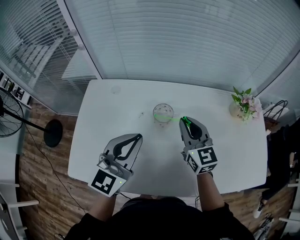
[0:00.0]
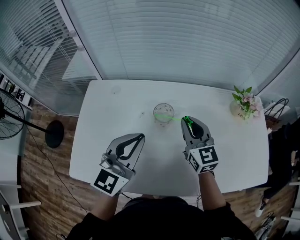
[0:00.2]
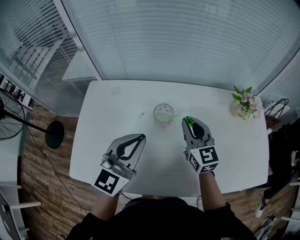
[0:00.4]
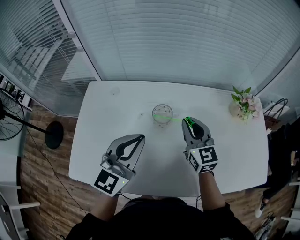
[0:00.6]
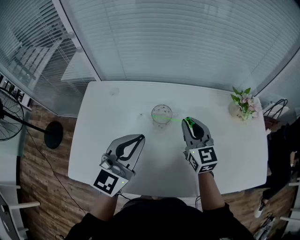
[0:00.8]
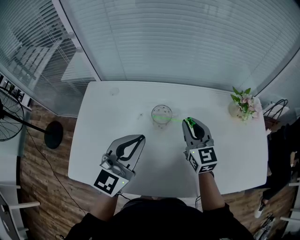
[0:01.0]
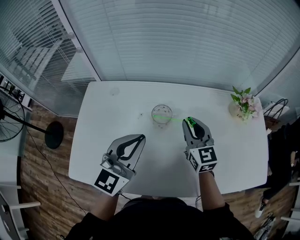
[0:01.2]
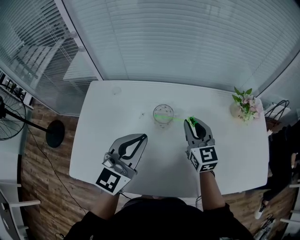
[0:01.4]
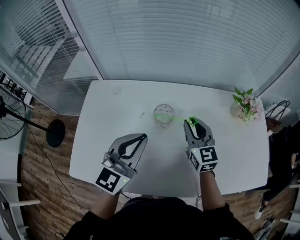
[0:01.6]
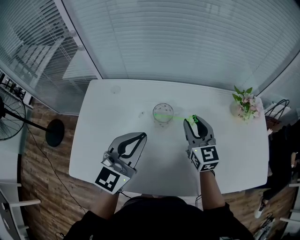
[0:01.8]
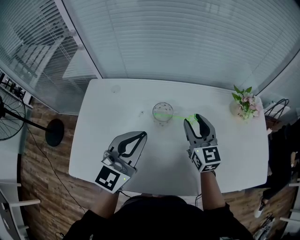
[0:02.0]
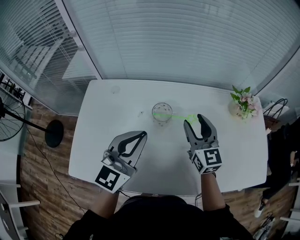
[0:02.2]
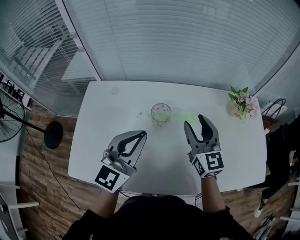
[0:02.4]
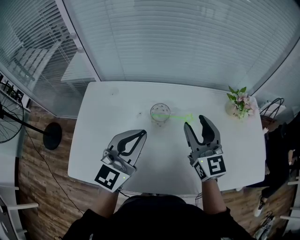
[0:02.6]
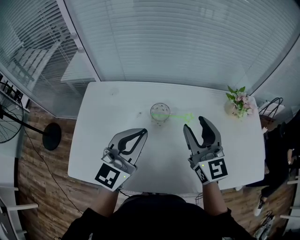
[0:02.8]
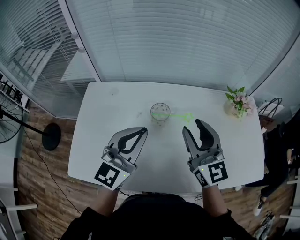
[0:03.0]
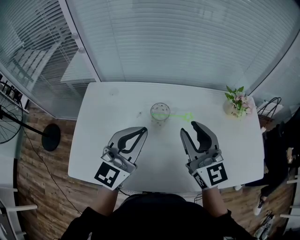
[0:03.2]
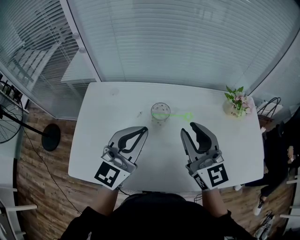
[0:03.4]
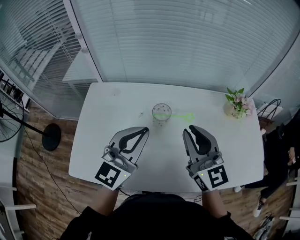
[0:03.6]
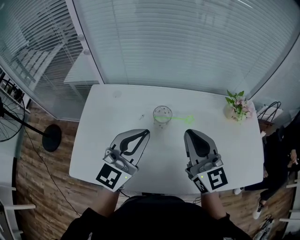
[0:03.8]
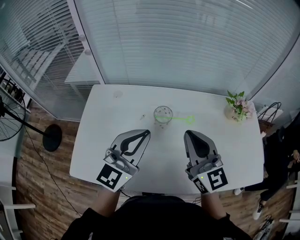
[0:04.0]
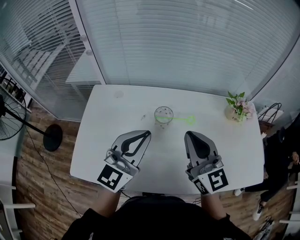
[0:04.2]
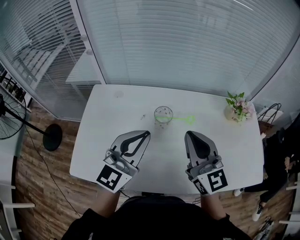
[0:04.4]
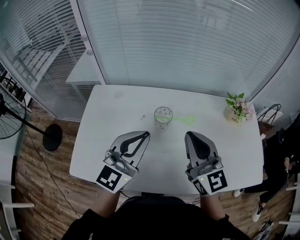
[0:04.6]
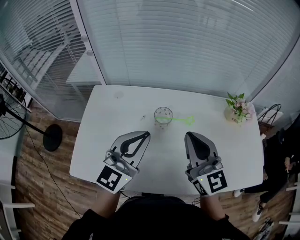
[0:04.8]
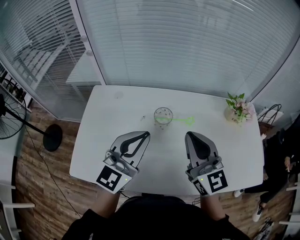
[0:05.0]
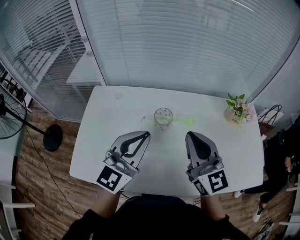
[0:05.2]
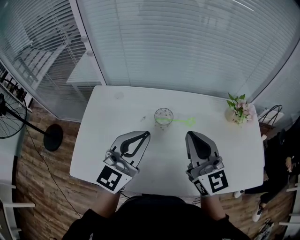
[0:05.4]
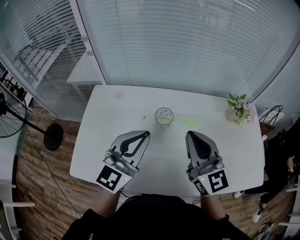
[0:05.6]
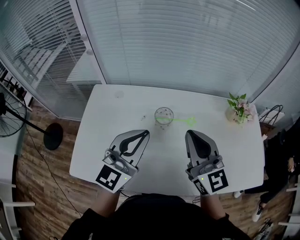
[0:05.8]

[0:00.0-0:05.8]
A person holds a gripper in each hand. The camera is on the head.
0:00.0 to 0:01.4: The grippers make only small movements.
0:01.4 to 0:02.8: The right gripper travels upward and backward by approximately 15 cm, and opens.
0:02.8 to 0:04.4: The right gripper moves backward, about 5 cm, and closes.
0:04.4 to 0:05.8: Both grippers stay about where they are.

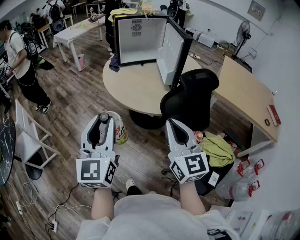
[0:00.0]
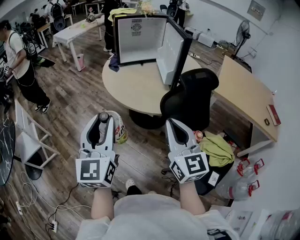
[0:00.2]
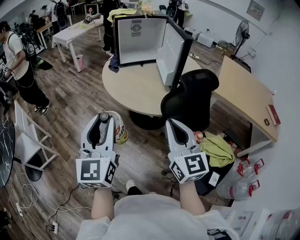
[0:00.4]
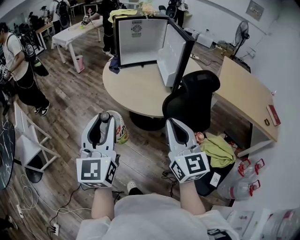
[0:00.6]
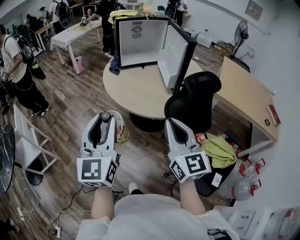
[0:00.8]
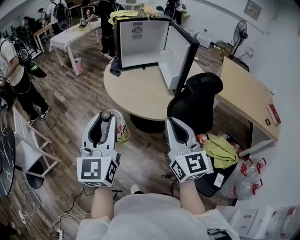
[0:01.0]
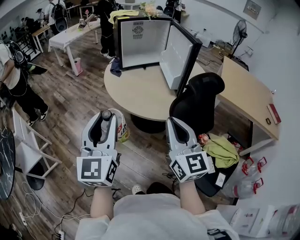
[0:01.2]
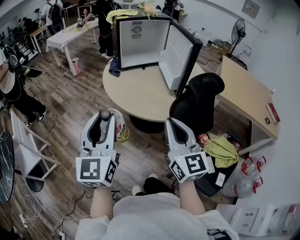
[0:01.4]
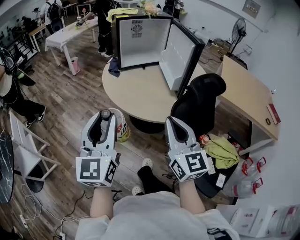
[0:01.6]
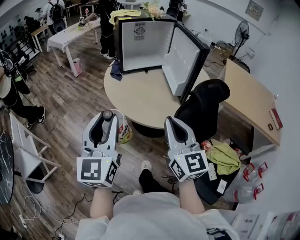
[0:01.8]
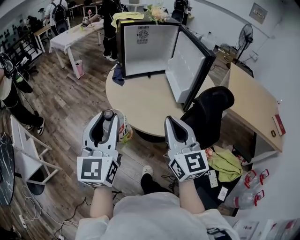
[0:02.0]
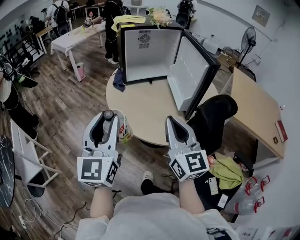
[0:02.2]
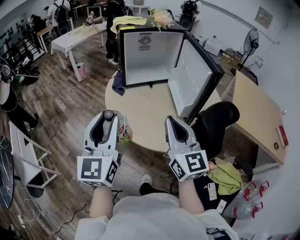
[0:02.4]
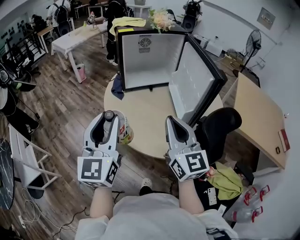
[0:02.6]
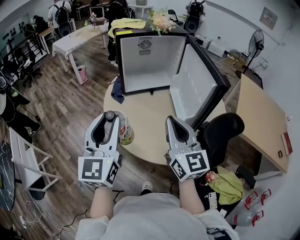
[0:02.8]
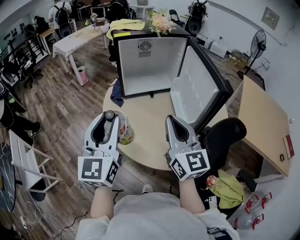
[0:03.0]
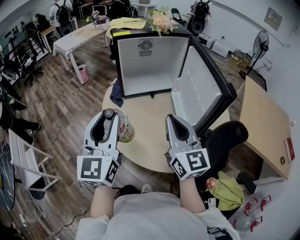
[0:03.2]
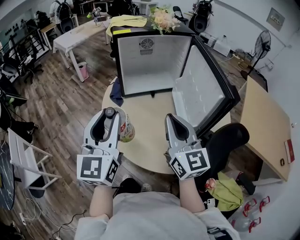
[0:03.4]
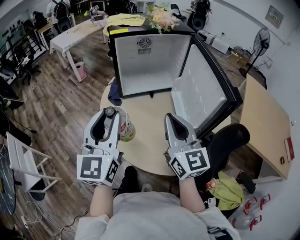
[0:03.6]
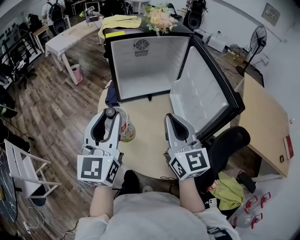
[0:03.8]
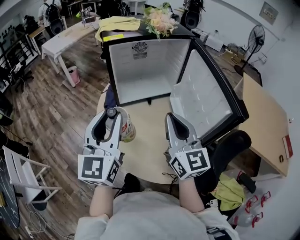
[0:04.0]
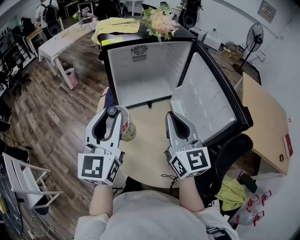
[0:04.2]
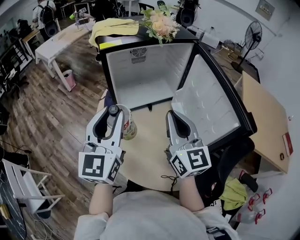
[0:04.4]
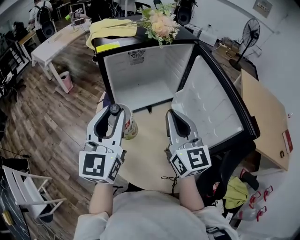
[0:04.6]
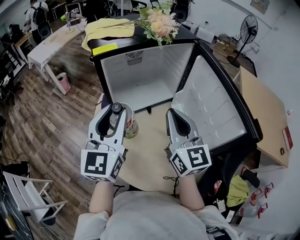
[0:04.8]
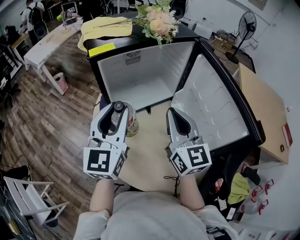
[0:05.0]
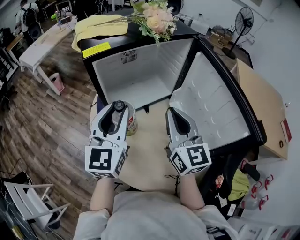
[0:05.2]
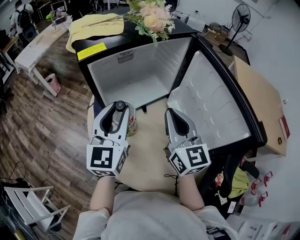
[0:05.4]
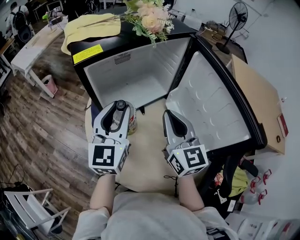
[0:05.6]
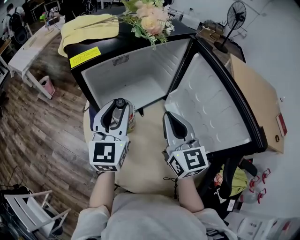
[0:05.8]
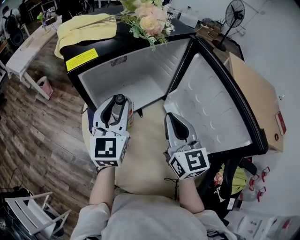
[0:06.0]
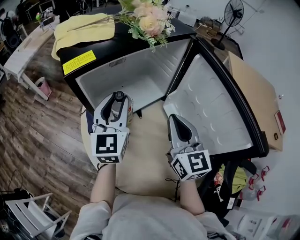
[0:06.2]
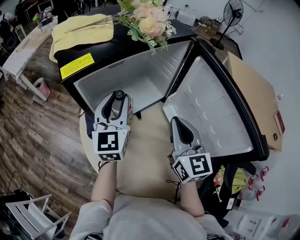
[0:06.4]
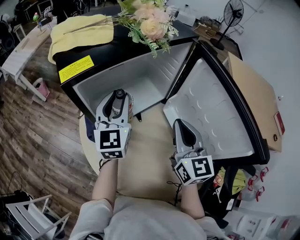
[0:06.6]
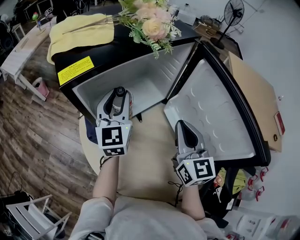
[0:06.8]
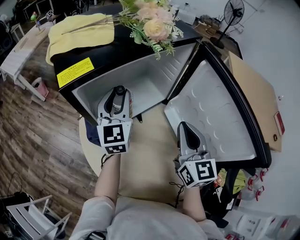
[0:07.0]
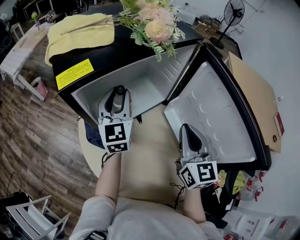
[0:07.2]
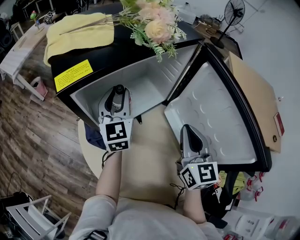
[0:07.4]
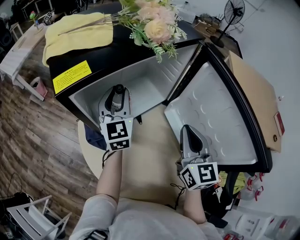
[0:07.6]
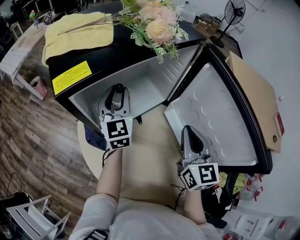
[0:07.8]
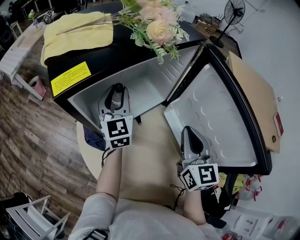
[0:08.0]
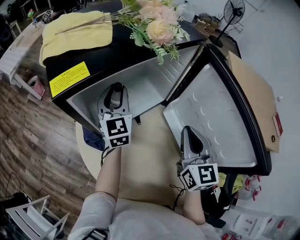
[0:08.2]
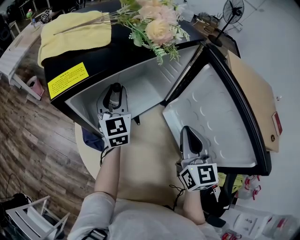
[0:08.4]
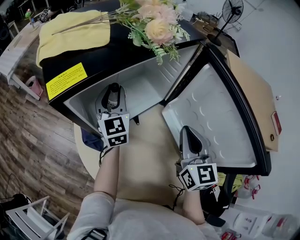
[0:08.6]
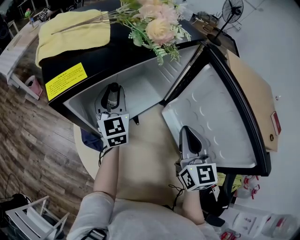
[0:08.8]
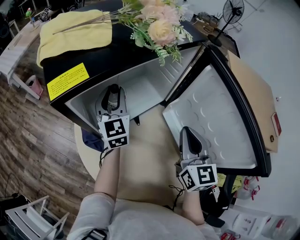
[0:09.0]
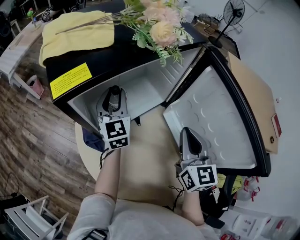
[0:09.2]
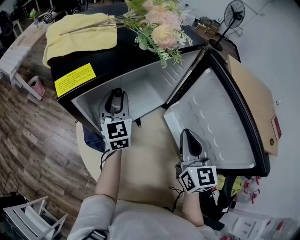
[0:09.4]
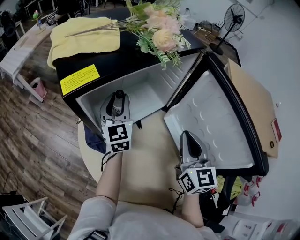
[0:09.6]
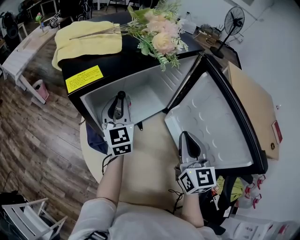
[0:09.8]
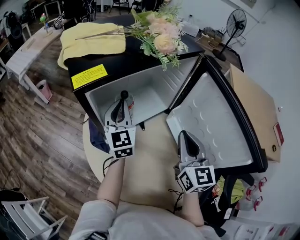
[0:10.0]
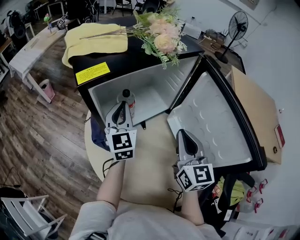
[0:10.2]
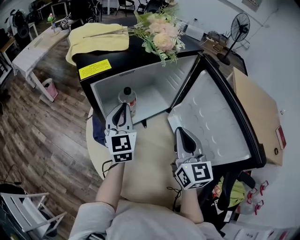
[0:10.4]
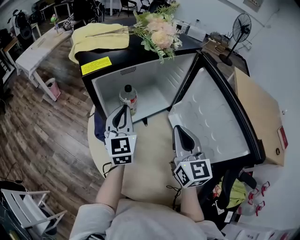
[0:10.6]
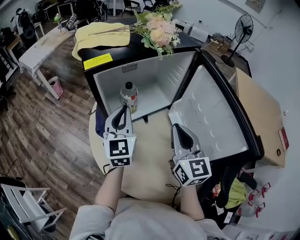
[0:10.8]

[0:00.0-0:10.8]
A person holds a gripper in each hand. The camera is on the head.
0:00.0 to 0:01.6: The two grippers go roughly 10 cm forward and to the left.
0:01.6 to 0:03.0: The grippers both shift forward by about 30 cm.
0:03.0 to 0:04.6: Both grippers travel together forward, roughly 20 cm.
0:04.6 to 0:06.2: The left gripper is displaced forward and downward by some 20 cm. The right gripper travels forward and downward by roughly 10 cm.
0:06.2 to 0:07.8: The left gripper travels forward and downward by approximately 10 cm. The right gripper changes place by some 5 cm.
0:07.8 to 0:09.2: There are only small adjustments of the grippers.
0:09.2 to 0:10.8: The right gripper moves approximately 5 cm. The left gripper travels backward by about 15 cm, and closes its fingers.

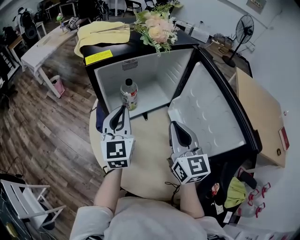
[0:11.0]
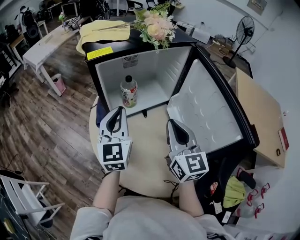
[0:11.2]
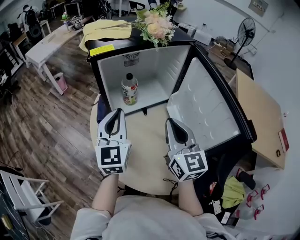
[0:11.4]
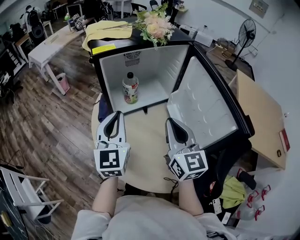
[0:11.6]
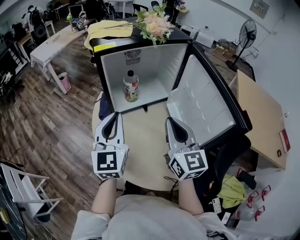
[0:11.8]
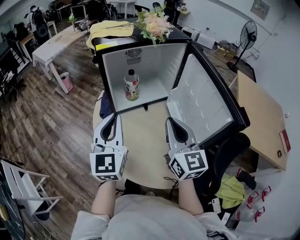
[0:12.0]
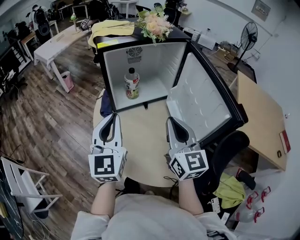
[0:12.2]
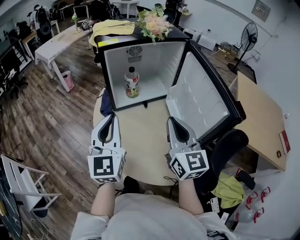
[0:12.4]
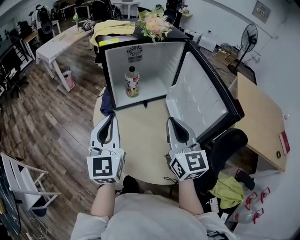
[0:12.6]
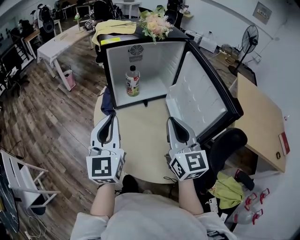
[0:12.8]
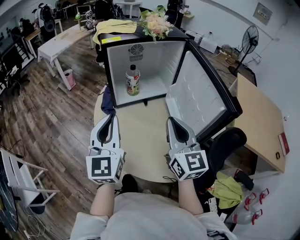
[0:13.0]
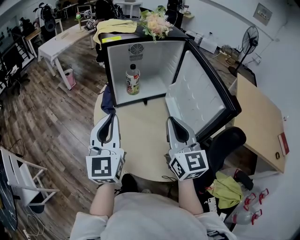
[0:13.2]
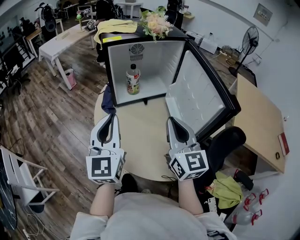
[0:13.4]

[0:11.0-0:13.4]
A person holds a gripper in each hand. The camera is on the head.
0:11.0 to 0:12.2: The left gripper goes roughly 15 cm backward. Meanwhile the right gripper is displaced backward by some 10 cm.
0:12.2 to 0:13.4: The left gripper travels backward by about 5 cm; the right gripper moves approximately 5 cm.

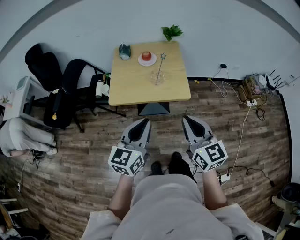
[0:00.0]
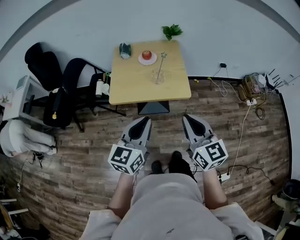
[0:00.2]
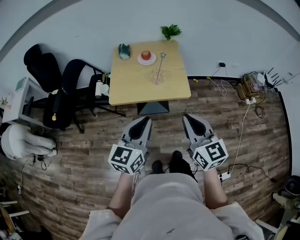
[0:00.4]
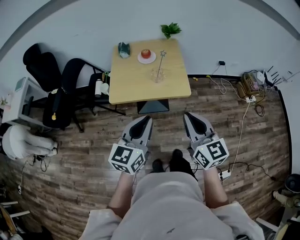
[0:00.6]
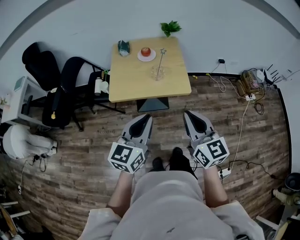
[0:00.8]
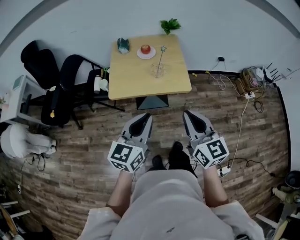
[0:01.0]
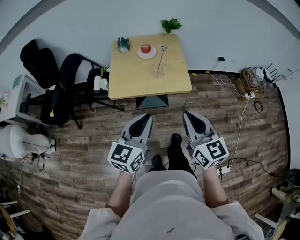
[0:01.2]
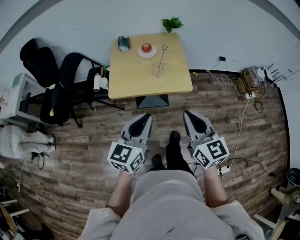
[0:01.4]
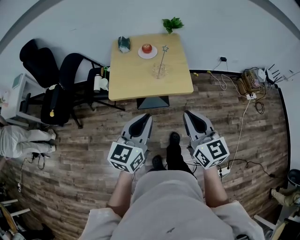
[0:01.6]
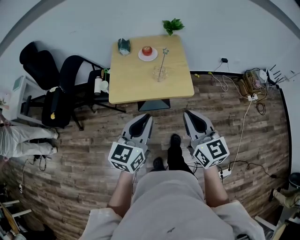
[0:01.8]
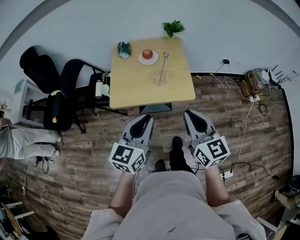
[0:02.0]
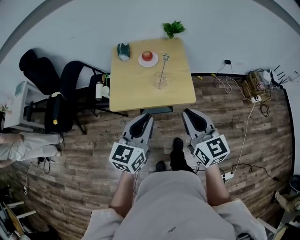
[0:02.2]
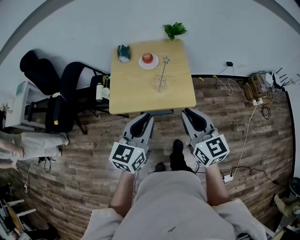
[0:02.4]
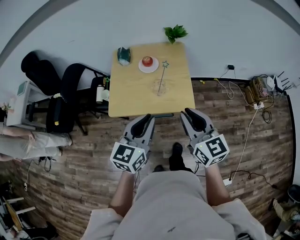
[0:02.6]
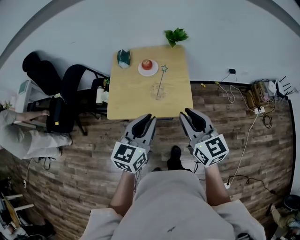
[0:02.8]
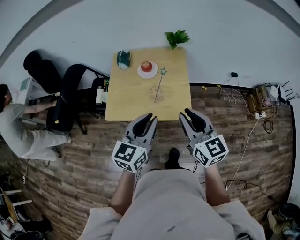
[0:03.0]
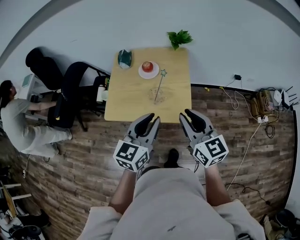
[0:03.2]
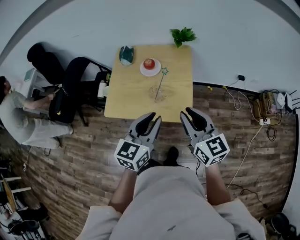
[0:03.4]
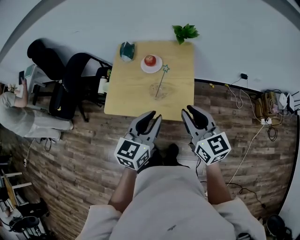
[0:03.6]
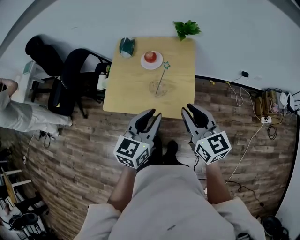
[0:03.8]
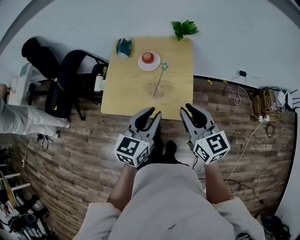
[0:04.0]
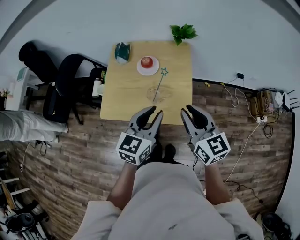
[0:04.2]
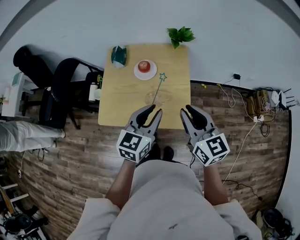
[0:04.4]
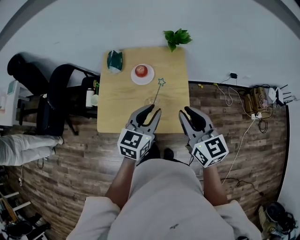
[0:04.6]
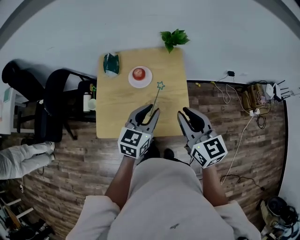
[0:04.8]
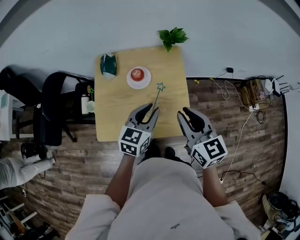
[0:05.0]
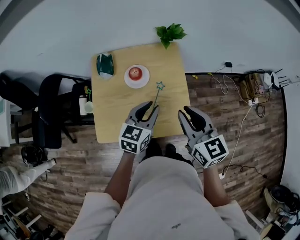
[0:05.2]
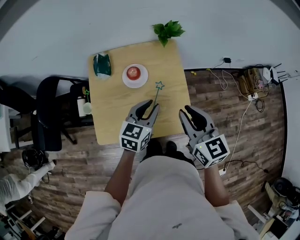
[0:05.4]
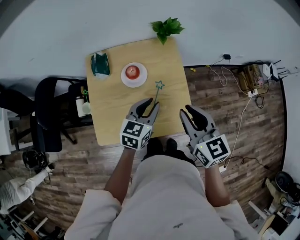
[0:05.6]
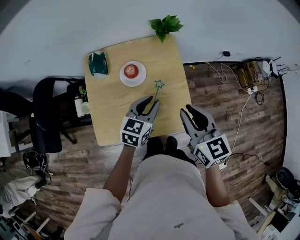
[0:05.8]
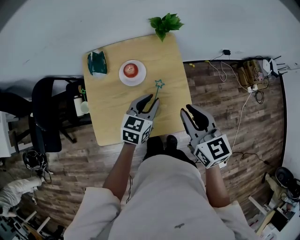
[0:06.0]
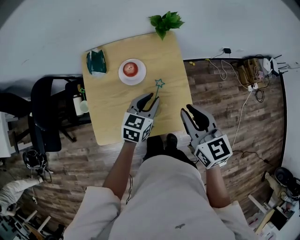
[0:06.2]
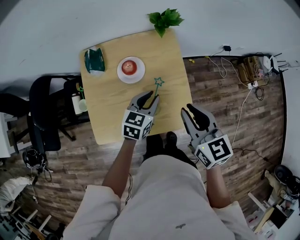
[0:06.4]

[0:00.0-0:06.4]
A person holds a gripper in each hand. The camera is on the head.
0:00.0 to 0:01.6: The grippers stay close to where they were, moving slightly.
0:01.6 to 0:03.2: The left gripper goes approximately 25 cm forward and to the right. Meanwhile the right gripper is displaced forward by about 25 cm.
0:03.2 to 0:04.8: The left gripper heads forward and downward, covering approximately 20 cm; the right gripper is displaced forward by some 15 cm.
0:04.8 to 0:06.4: The right gripper heads downward, covering some 5 cm; the left gripper goes some 15 cm downward and forward.
